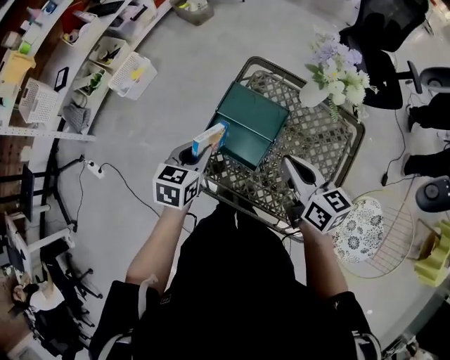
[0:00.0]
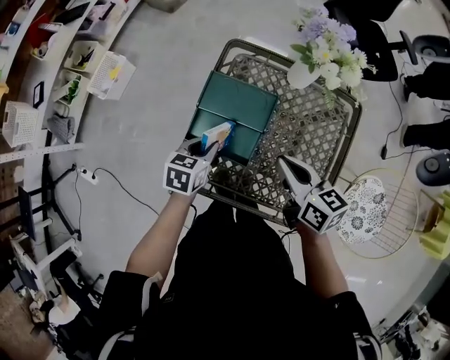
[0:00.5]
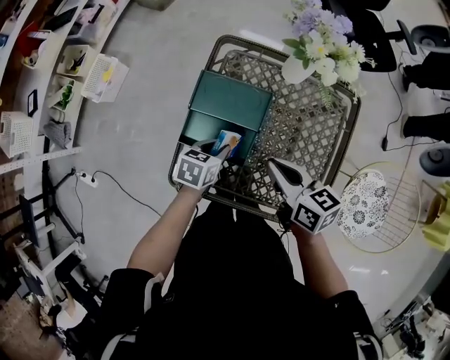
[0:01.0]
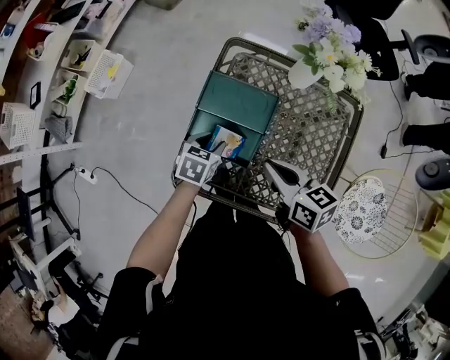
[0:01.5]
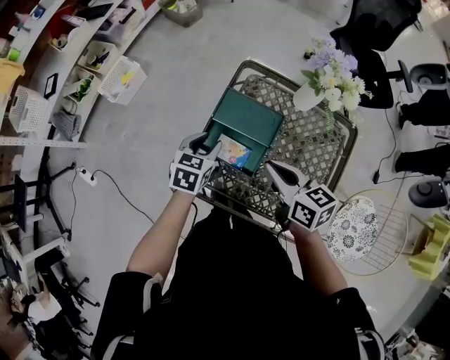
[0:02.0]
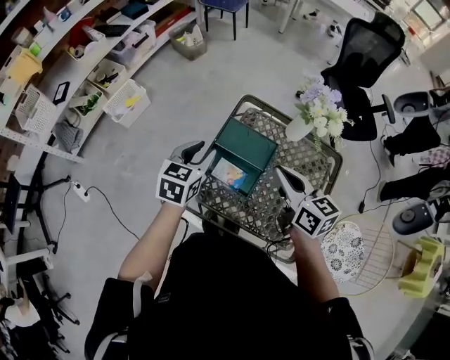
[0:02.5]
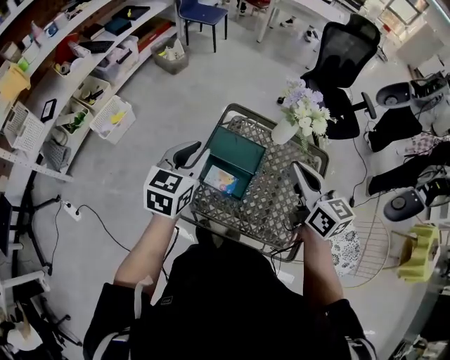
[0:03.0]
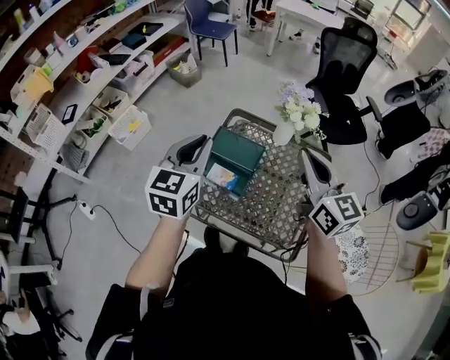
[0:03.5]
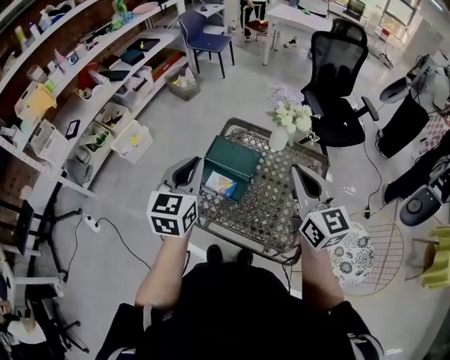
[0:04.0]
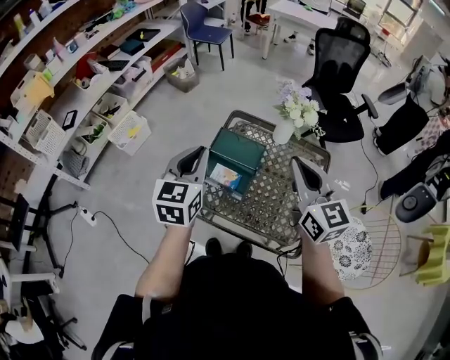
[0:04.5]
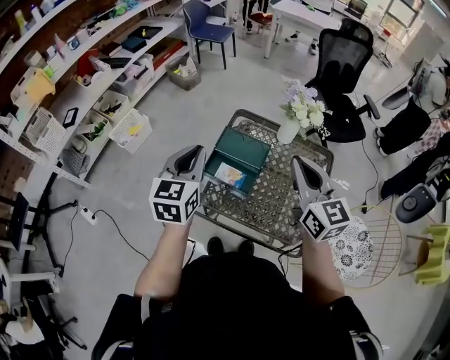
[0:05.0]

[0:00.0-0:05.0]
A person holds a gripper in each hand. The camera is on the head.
0:00.0 to 0:02.5: The left gripper moves forward, approximately 5 cm, and moves approximately 15 cm downward and comes back; the right gripper moves upward, roughly 5 cm.
0:02.5 to 0:05.0: Both grippers travel together upward and backward, about 15 cm. The left gripper closes its fingers. Meanwhile the right gripper rotates about 30 degrees.

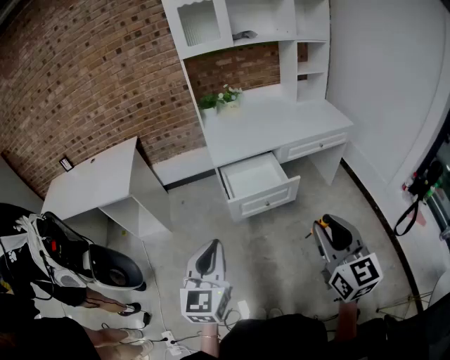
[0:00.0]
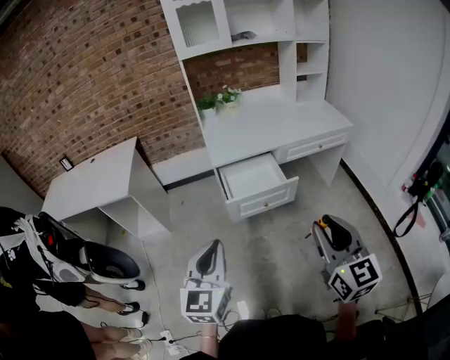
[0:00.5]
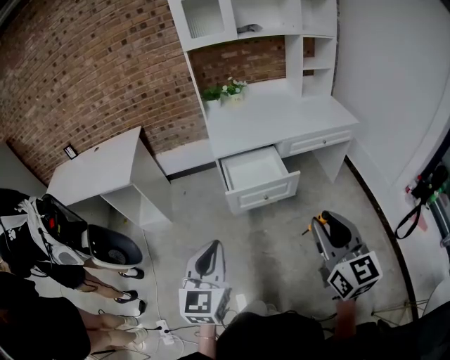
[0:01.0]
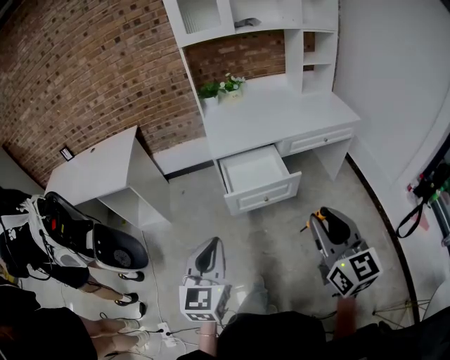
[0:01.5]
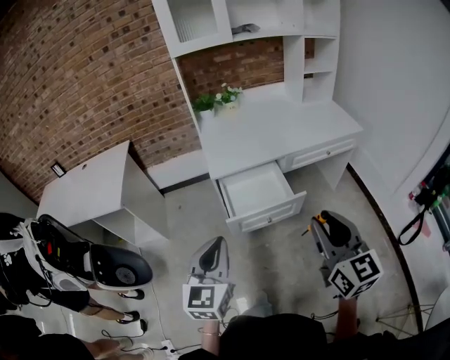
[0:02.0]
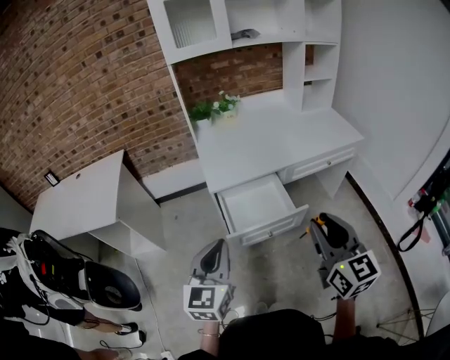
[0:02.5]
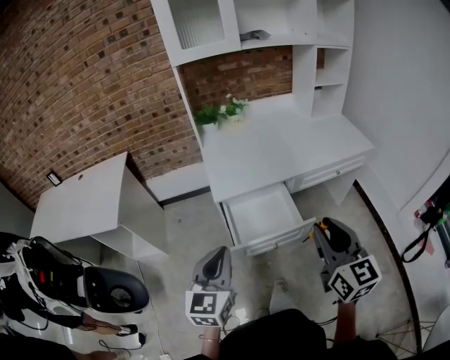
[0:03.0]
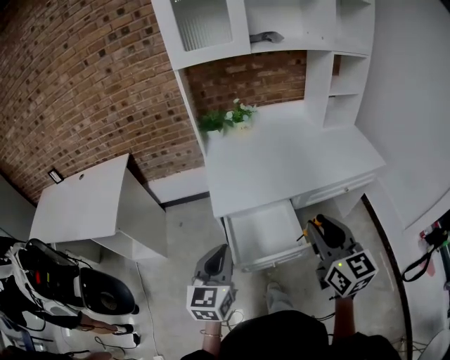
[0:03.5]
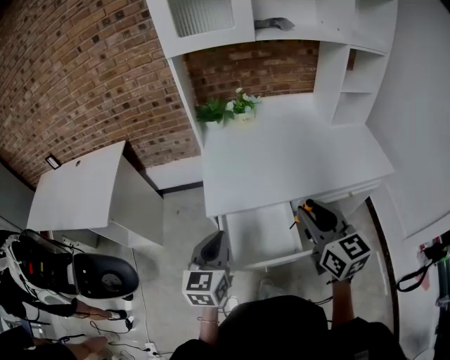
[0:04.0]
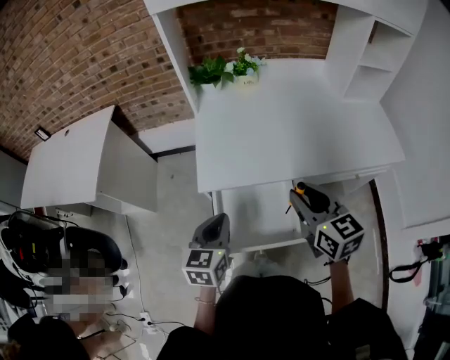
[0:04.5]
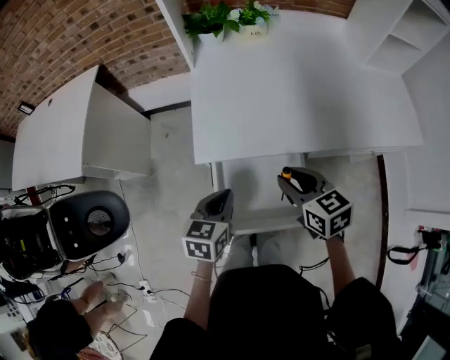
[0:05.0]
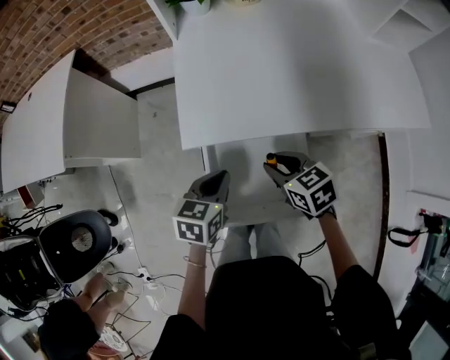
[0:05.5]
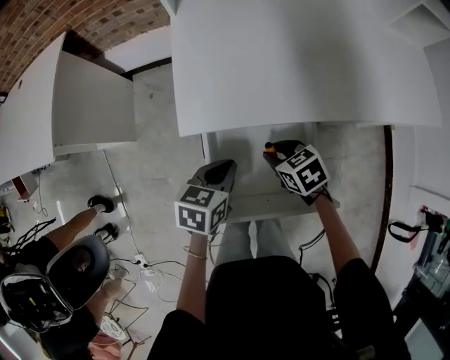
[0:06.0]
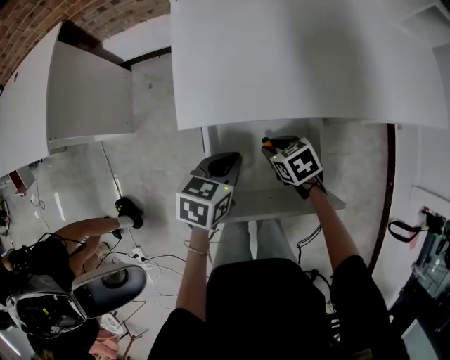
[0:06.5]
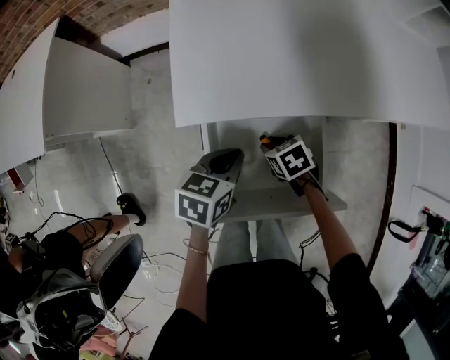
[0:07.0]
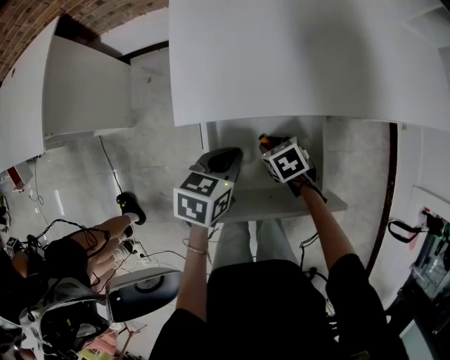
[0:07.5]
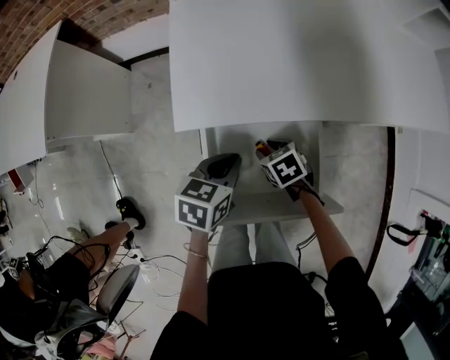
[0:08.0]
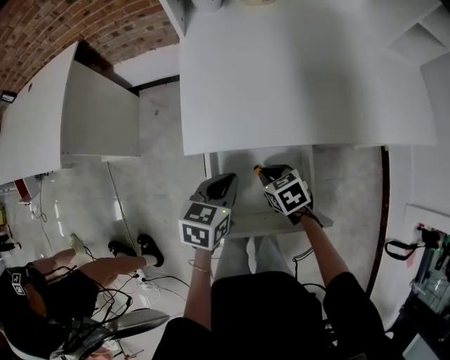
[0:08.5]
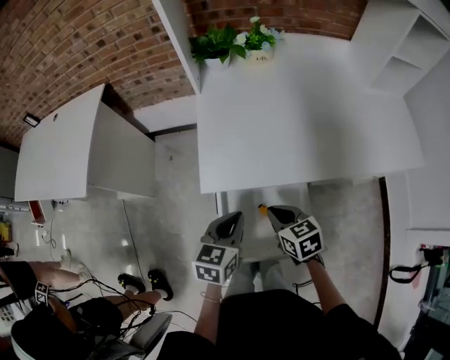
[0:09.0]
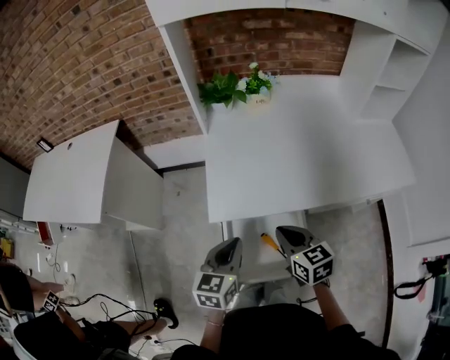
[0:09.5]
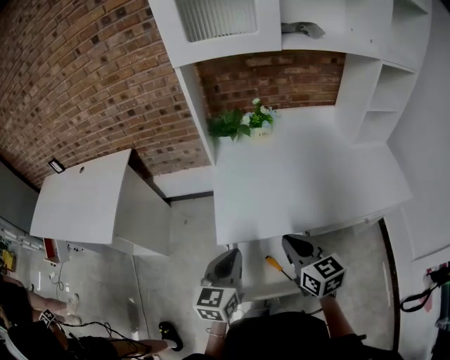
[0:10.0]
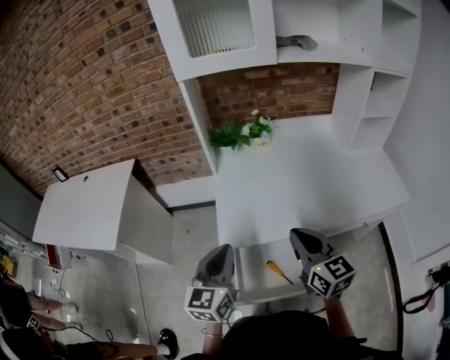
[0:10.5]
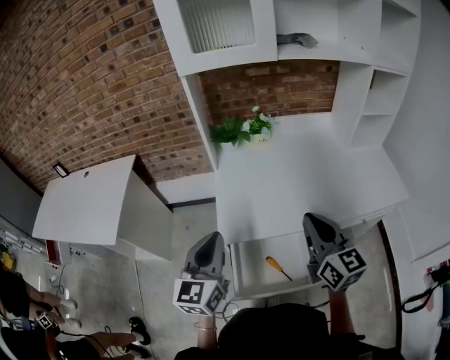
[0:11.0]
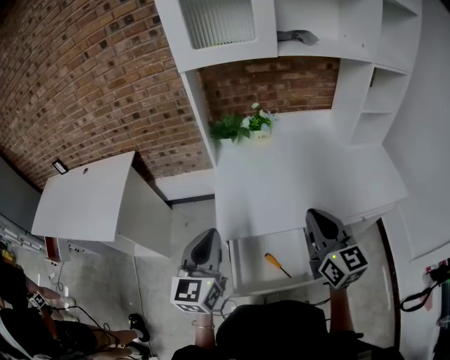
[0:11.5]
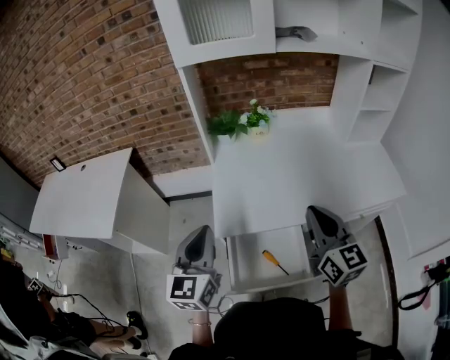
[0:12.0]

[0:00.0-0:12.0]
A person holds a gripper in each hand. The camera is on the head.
0:00.0 to 0:02.0: Both grippers travel together forward, some 15 cm.
0:02.0 to 0:04.0: Both grippers move forward, approximately 30 cm.
0:04.0 to 0:06.0: Both grippers move downward, about 35 cm. The left gripper swivels roughly 40 degrees, while the right gripper tilts its fingers roughly 50 degrees downward.
0:06.0 to 0:08.0: The right gripper shifts approximately 10 cm downward.
0:08.0 to 0:10.0: The two grippers go some 35 cm upward. The left gripper changes its angle by some 40 degrees; the right gripper tips its fingers upward by approximately 50 degrees, and closes up.
0:10.0 to 0:12.0: The right gripper travels upward and to the right by roughly 15 cm, and rotates some 20 degrees; the left gripper goes some 10 cm upward and to the left.

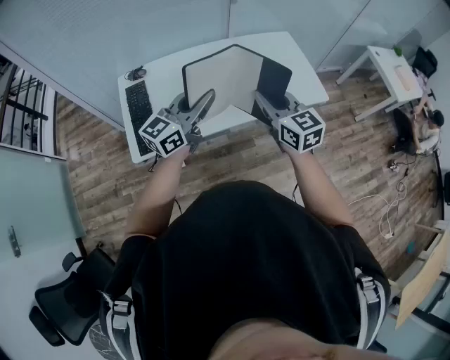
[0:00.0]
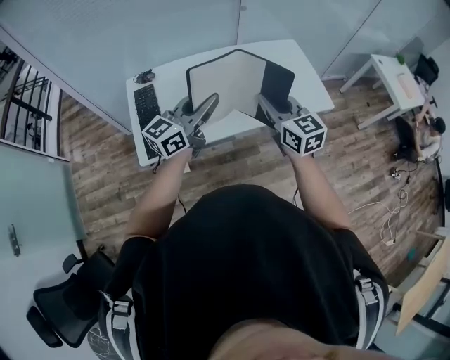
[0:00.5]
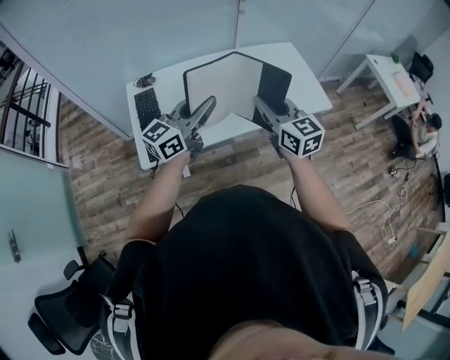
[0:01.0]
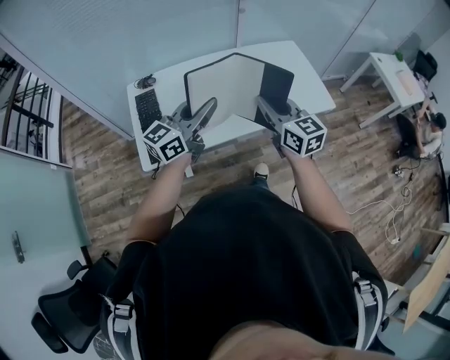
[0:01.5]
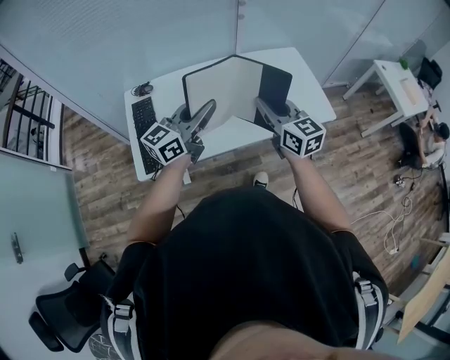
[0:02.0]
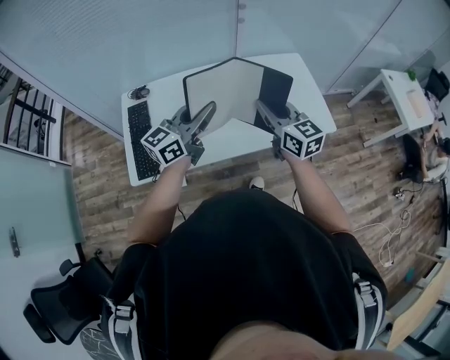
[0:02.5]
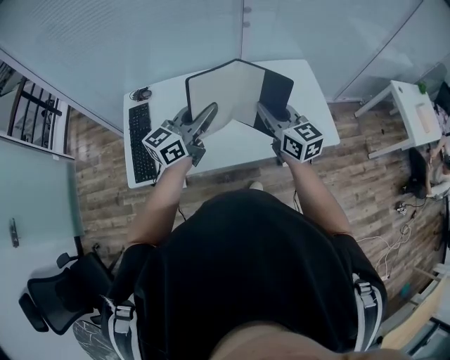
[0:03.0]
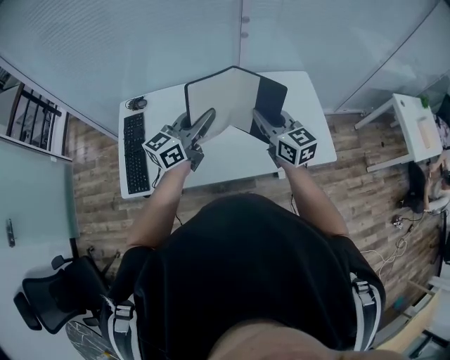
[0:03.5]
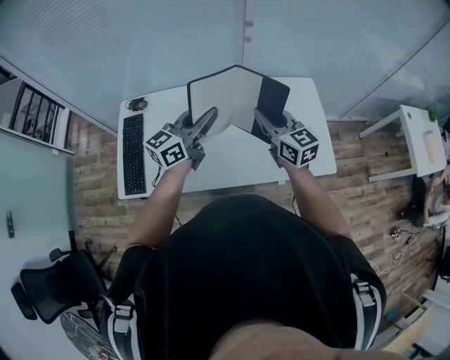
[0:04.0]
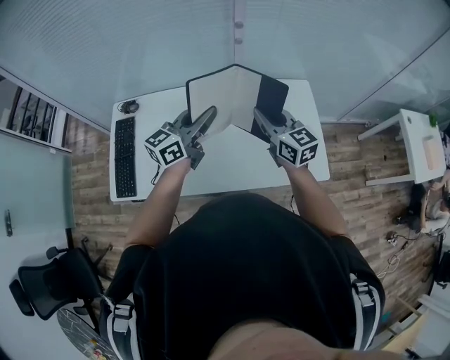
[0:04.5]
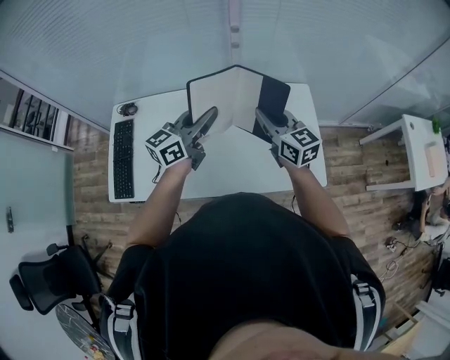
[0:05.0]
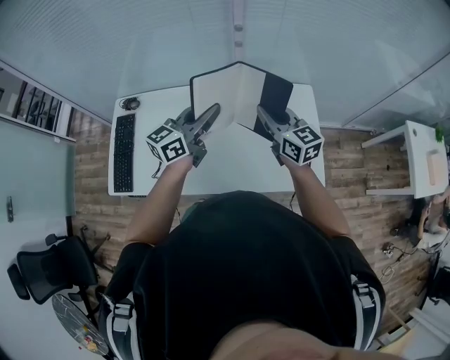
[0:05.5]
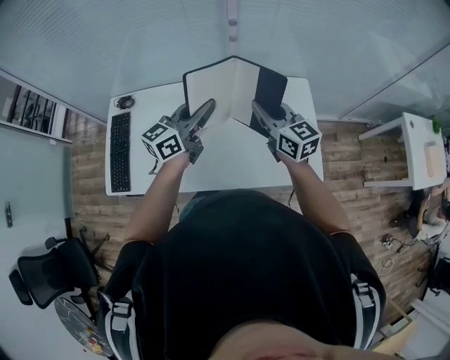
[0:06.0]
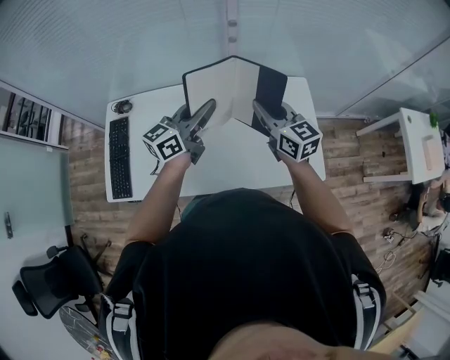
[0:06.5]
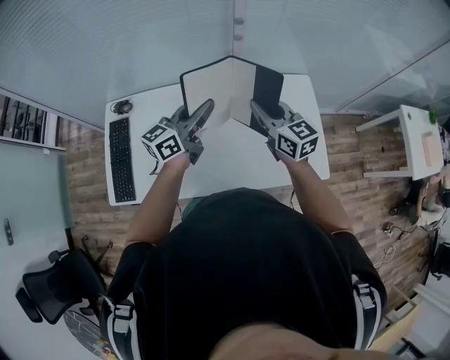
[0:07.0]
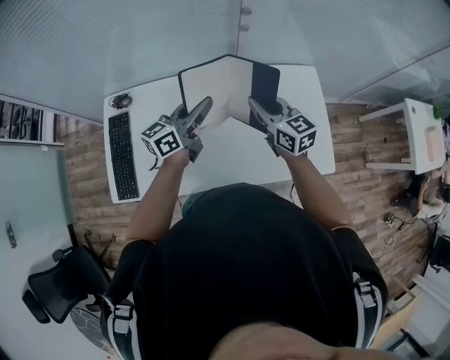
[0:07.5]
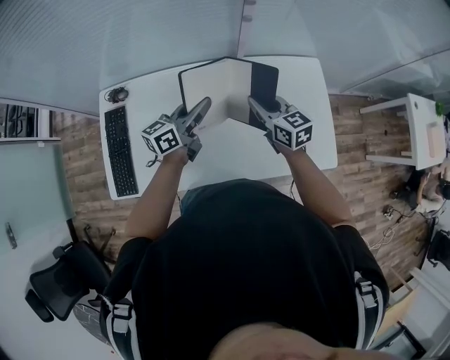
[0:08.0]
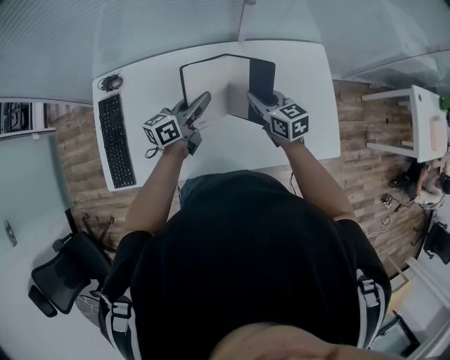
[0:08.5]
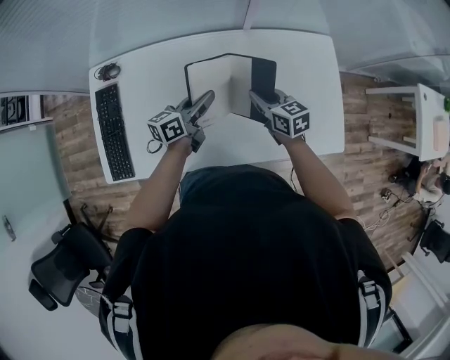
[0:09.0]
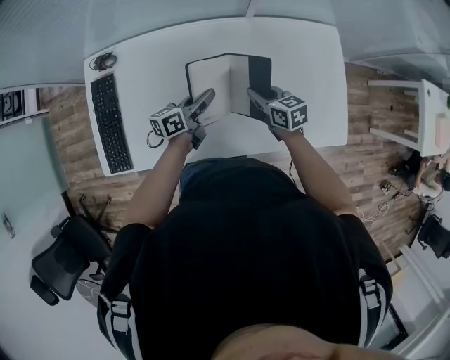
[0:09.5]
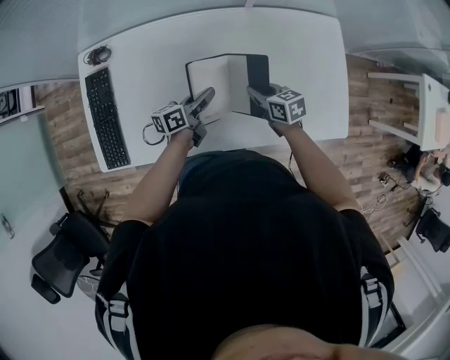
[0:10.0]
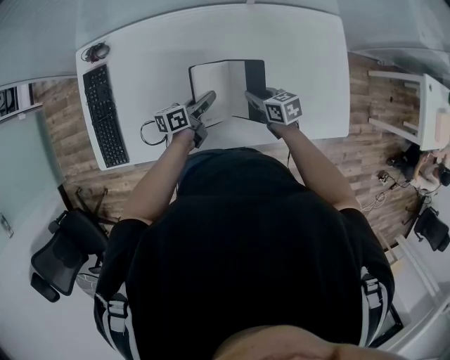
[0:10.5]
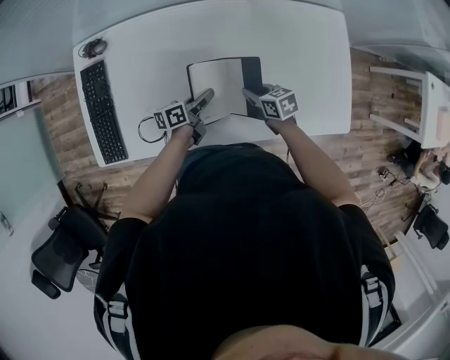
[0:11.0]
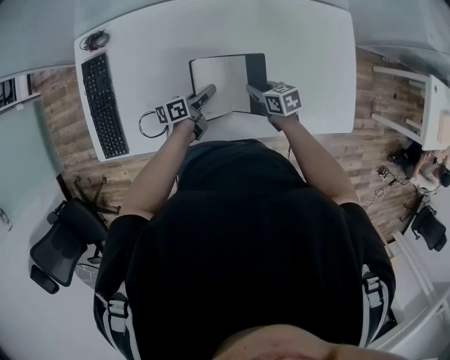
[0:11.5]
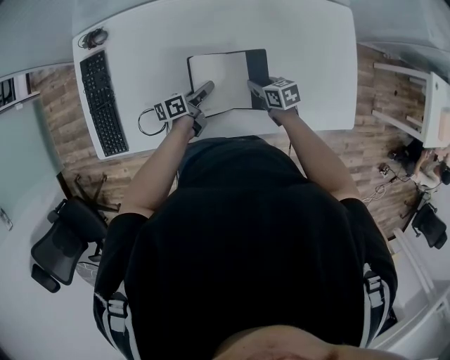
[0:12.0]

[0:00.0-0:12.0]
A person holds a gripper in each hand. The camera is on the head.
0:00.0 to 0:02.0: The two grippers go about 10 cm forward.
0:02.0 to 0:04.0: Both grippers travel together forward and to the right, about 30 cm.
0:04.0 to 0:06.0: The left gripper moves to the right and forward, roughly 10 cm. Meanwhile the right gripper heads forward and to the right, covering approximately 10 cm.
0:06.0 to 0:08.0: Both grippers travel together downward, to the left and forward, roughly 20 cm.
0:08.0 to 0:10.0: The two grippers go roughly 20 cm downward. The right gripper rotates about 30 degrees, while the left gripper changes its angle by approximately 30 degrees.
0:10.0 to 0:12.0: Both grippers move downward, about 10 cm.
